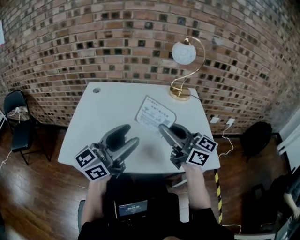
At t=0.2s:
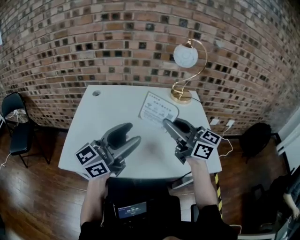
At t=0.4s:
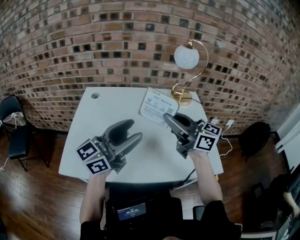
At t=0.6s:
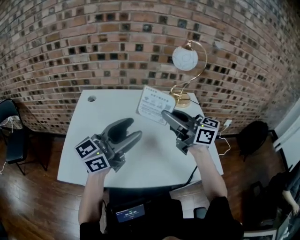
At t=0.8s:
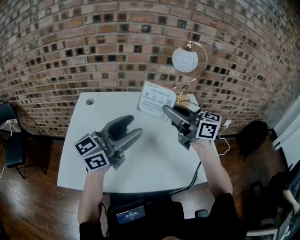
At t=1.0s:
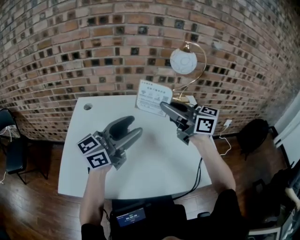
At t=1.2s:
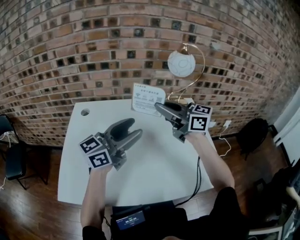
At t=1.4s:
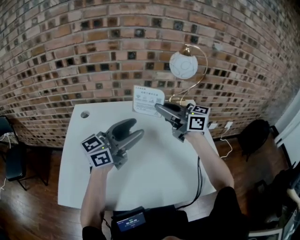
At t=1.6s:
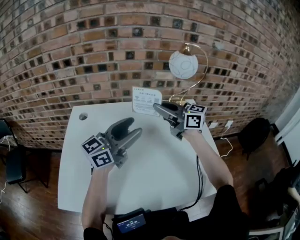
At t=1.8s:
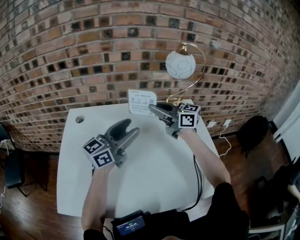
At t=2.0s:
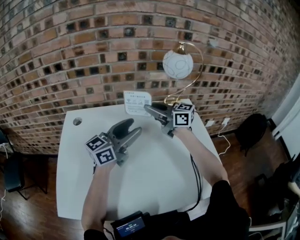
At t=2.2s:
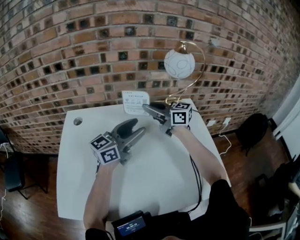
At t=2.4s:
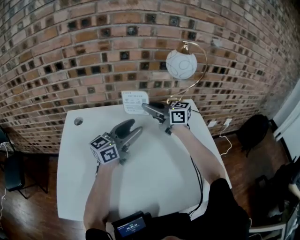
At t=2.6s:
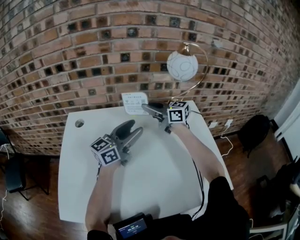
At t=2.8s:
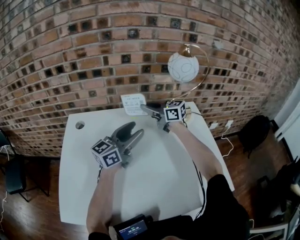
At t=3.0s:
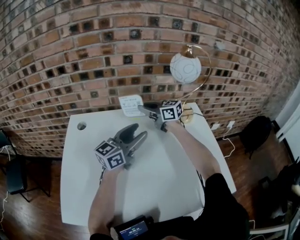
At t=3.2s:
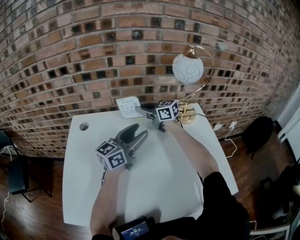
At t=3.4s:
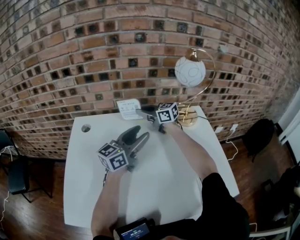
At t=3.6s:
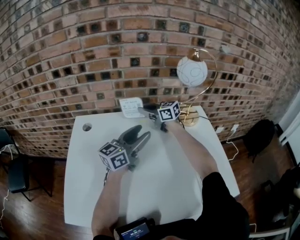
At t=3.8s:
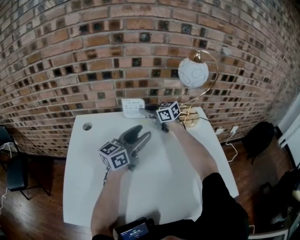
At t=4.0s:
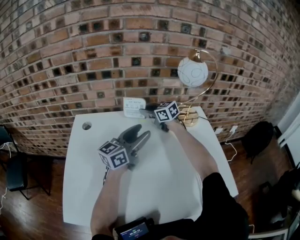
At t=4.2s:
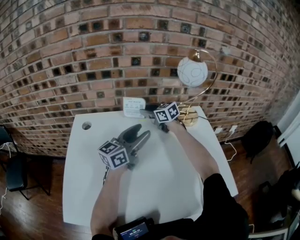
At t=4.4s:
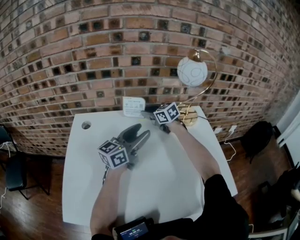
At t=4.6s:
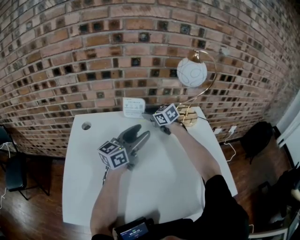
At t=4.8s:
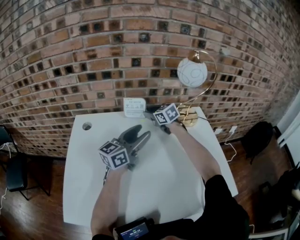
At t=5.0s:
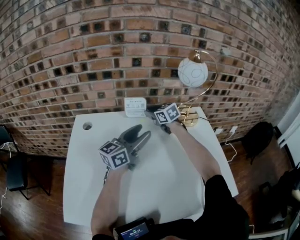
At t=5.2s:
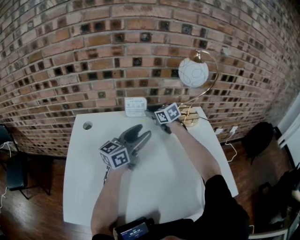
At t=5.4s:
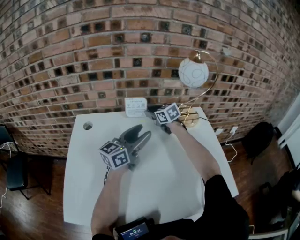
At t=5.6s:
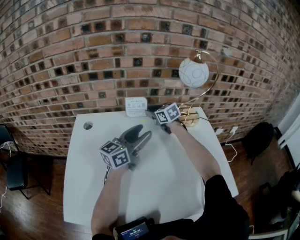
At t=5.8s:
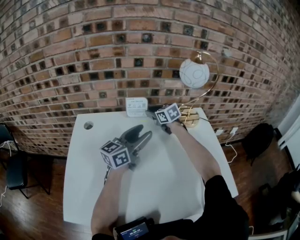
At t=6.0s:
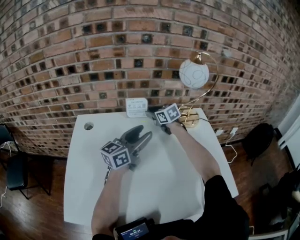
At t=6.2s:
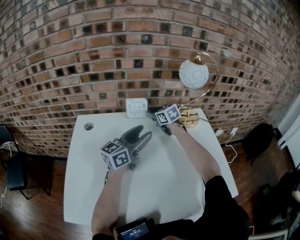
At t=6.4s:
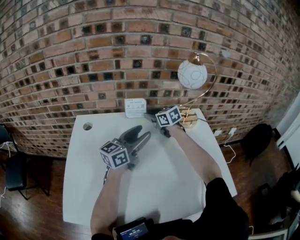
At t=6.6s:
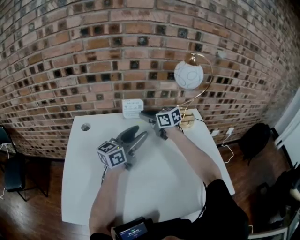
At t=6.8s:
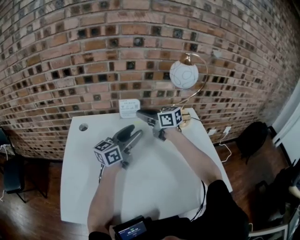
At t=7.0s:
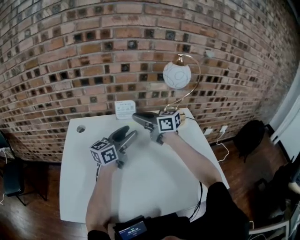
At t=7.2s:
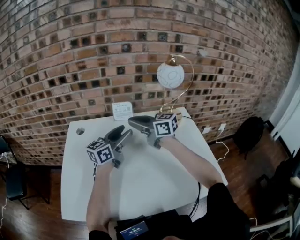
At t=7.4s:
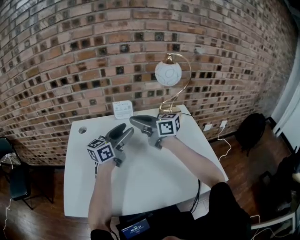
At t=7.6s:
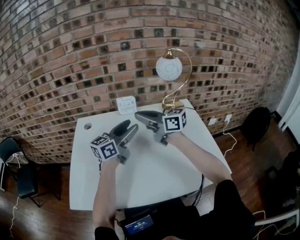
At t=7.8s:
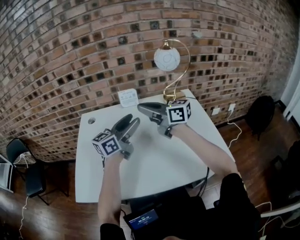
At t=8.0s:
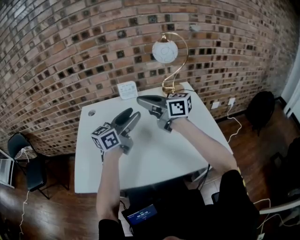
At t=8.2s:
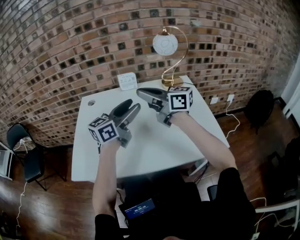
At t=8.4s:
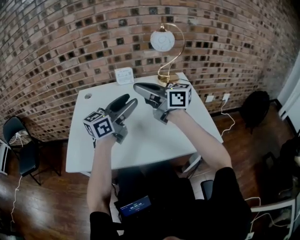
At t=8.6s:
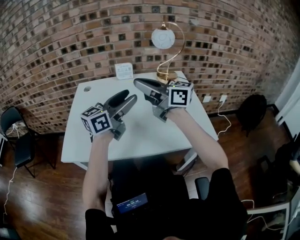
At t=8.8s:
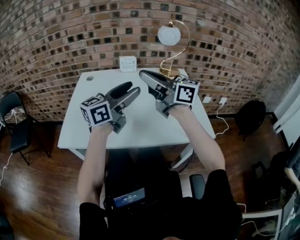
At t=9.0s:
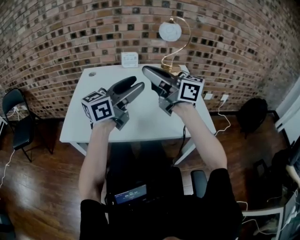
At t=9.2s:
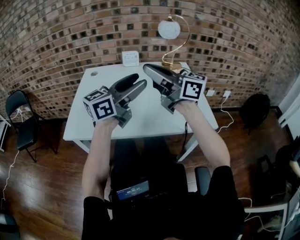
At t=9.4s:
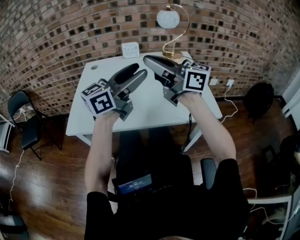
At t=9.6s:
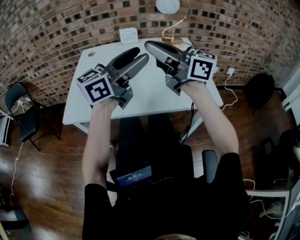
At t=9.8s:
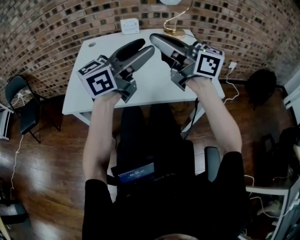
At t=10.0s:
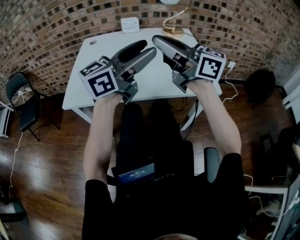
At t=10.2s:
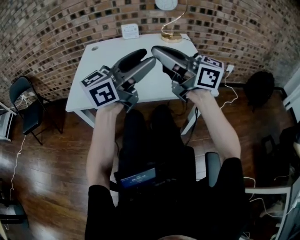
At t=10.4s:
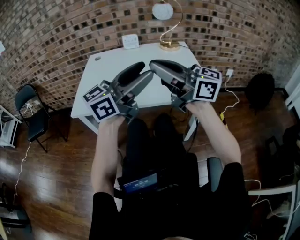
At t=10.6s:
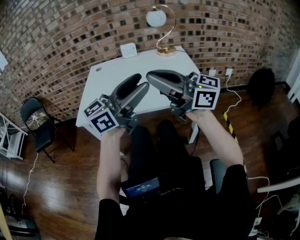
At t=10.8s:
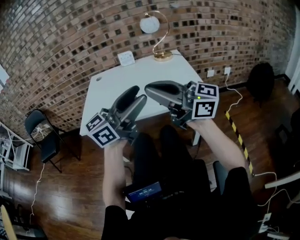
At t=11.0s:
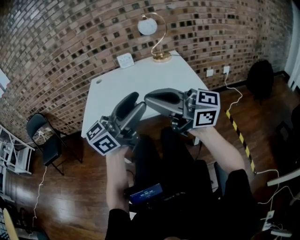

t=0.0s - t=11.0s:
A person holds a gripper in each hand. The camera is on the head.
t=0.0s - t=1.6s: The two grippers go some 25 cm forward.
t=1.6s - t=3.2s: The right gripper moves forward, downward and to the left, about 20 cm. Meanwhile the left gripper is displaced forward and downward by about 10 cm.
t=3.2s - t=4.8s: The right gripper changes place by roughly 5 cm, changes its angle by about 30 degrees, and opens.
t=4.8s - t=6.2s: The two grippers keep their place.
t=6.2s - t=7.8s: The right gripper goes about 30 cm backward and upward, tilts its fingers roughly 30 degrees upward, and closes its fingers, while the left gripper heads backward and upward, covering some 10 cm.
t=7.8s - t=9.4s: The grippers both shift backward and upward by approximately 25 cm.
t=9.4s - t=11.0s: The right gripper shifts by approximately 25 cm. The left gripper ends up approximately 20 cm from where it was.

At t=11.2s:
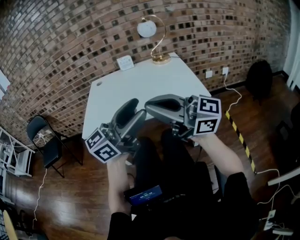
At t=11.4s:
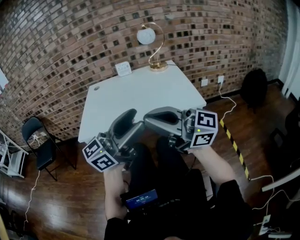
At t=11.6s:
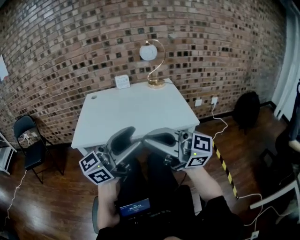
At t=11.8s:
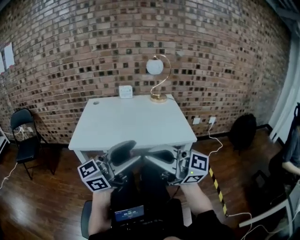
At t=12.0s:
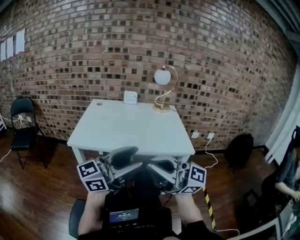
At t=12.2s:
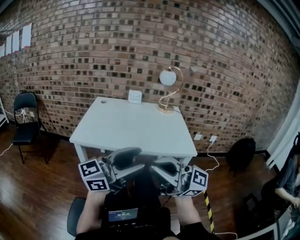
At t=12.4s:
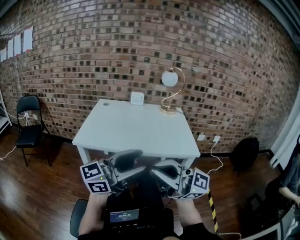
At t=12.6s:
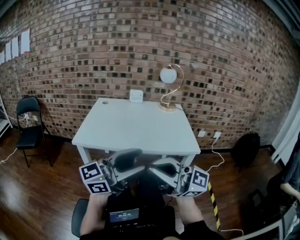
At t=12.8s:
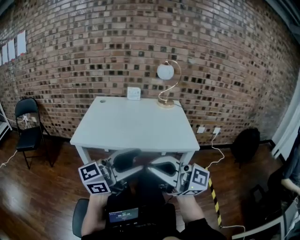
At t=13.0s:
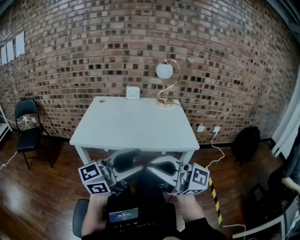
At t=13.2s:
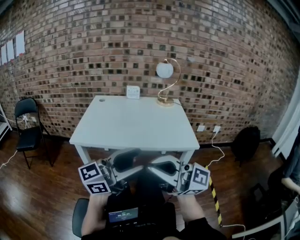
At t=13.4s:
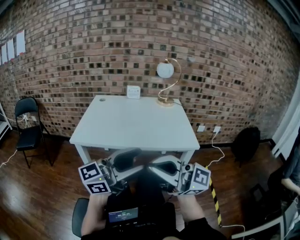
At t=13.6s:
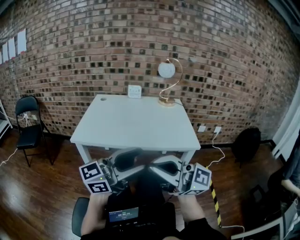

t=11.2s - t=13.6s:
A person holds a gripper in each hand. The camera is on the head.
t=11.2s - t=12.4s: The right gripper shifts by some 10 cm. Meanwhile the left gripper ends up some 10 cm from where it was.
t=12.4s - t=13.6s: The grippers stay close to where they were, moving slightly.

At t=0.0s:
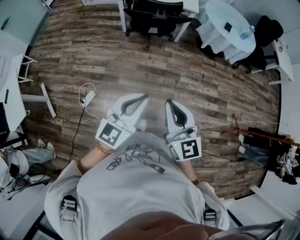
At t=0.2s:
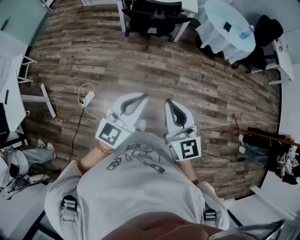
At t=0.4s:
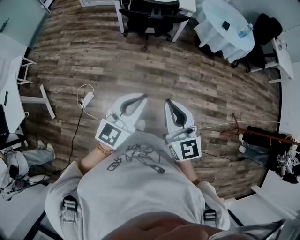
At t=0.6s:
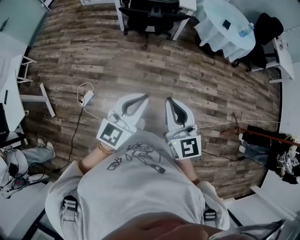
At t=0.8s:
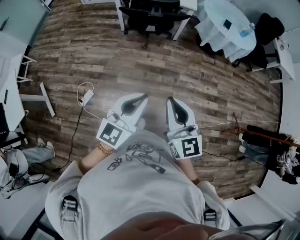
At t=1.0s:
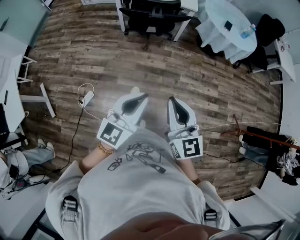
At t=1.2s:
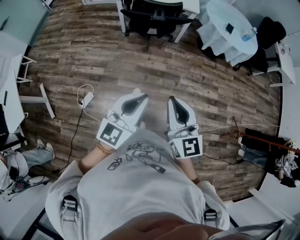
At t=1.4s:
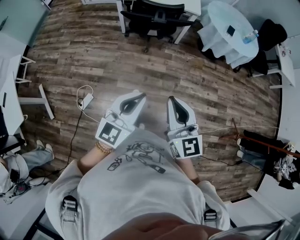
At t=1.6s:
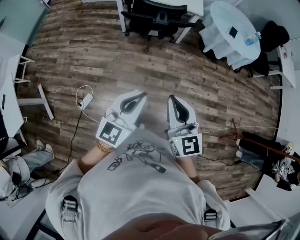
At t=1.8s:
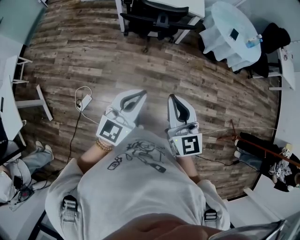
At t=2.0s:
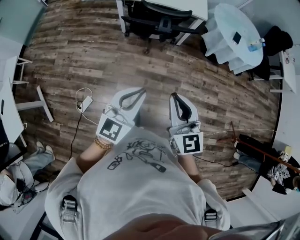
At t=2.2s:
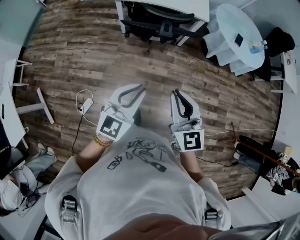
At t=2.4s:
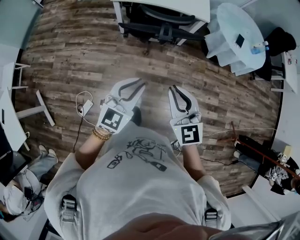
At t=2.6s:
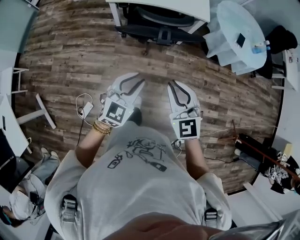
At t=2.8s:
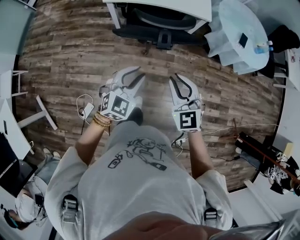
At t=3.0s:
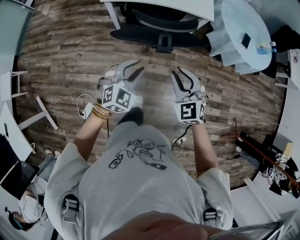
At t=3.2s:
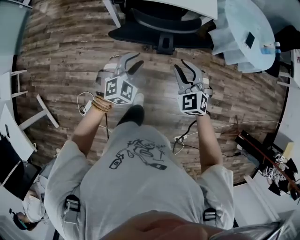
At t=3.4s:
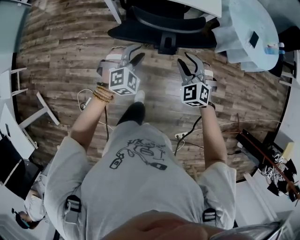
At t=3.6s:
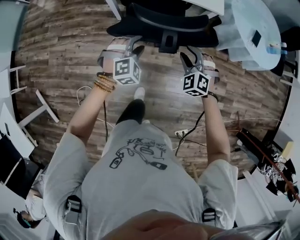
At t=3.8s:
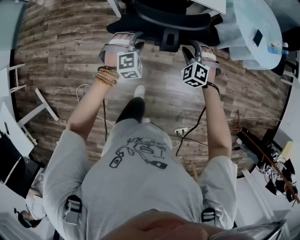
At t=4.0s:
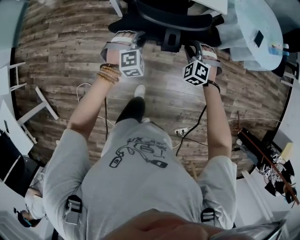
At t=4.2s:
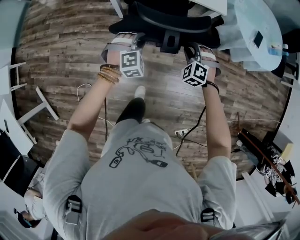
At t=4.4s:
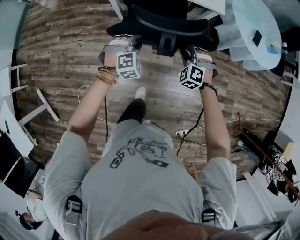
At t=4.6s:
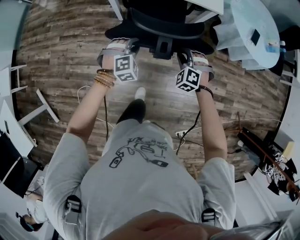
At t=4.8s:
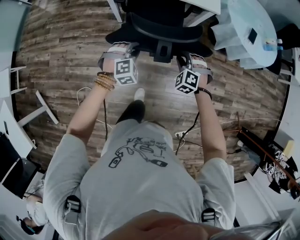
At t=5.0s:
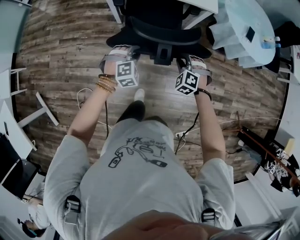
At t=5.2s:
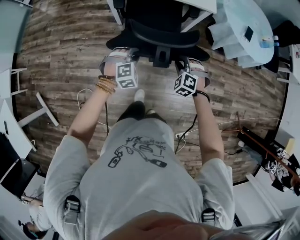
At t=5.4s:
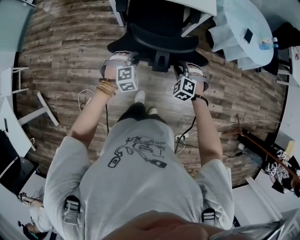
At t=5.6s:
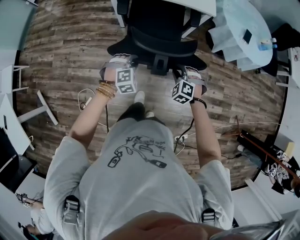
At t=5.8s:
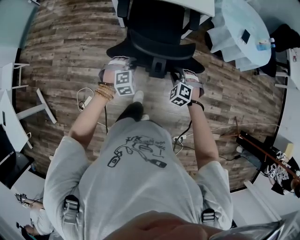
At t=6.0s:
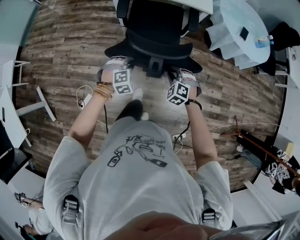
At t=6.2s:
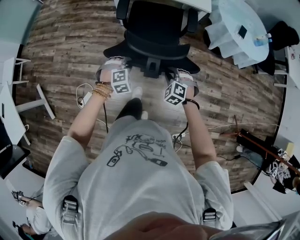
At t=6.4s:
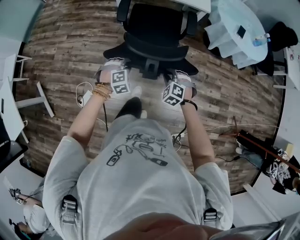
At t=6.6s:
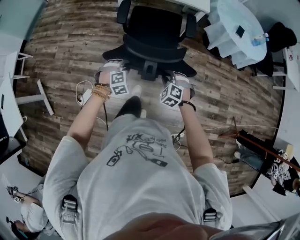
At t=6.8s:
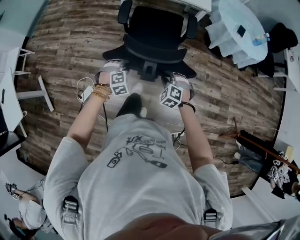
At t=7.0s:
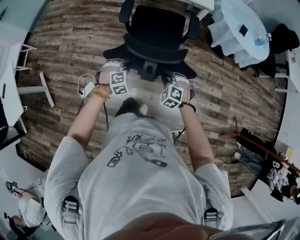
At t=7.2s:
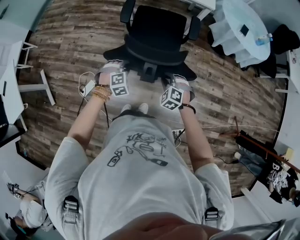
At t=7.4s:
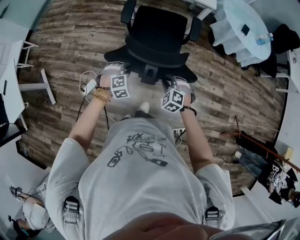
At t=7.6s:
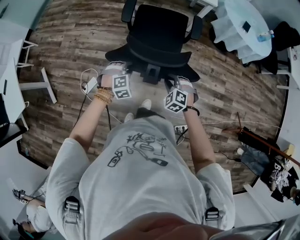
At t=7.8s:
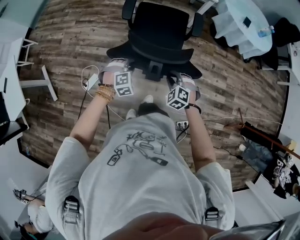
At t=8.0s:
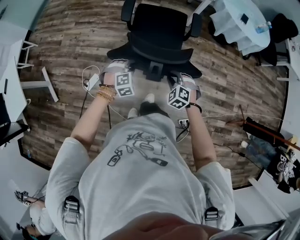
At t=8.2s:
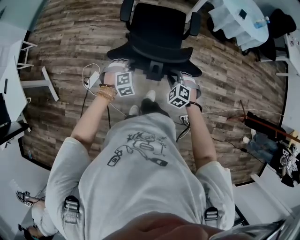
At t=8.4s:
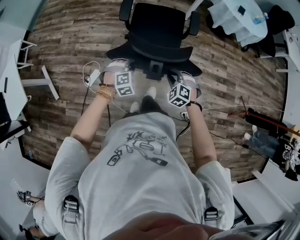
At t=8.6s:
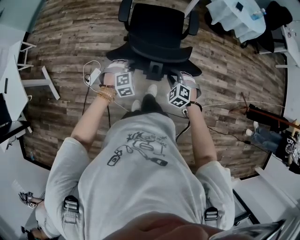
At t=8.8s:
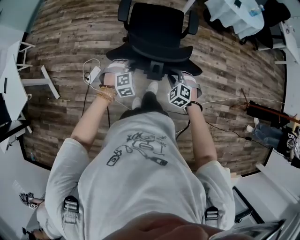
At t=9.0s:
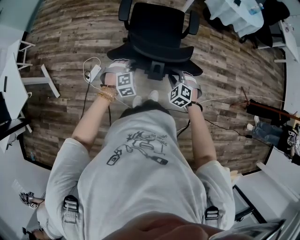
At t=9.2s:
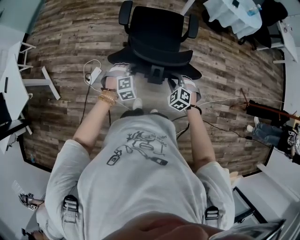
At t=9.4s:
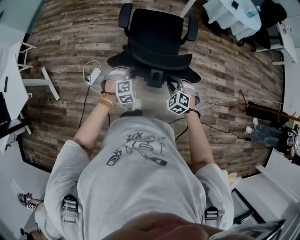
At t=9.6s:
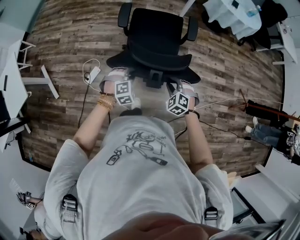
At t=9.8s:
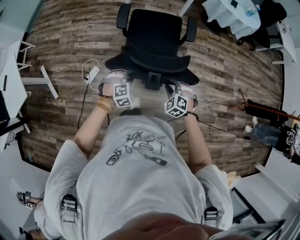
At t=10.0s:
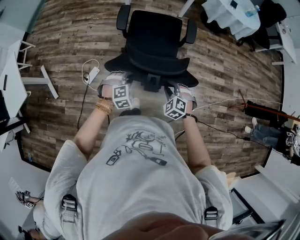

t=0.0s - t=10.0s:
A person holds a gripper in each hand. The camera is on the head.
t=0.0s - t=1.4s: The two grippers go some 10 cm forward.
t=1.4s - t=2.8s: The pair of grippers is taken forward, approximately 40 cm. The right gripper swivels approximately 30 degrees. Meanwhile the left gripper changes its angle by some 30 degrees, and opens its fingers.
t=2.8s - t=4.2s: Both grippers travel together forward and downward, about 30 cm. The right gripper swivels approximately 50 degrees. Meanwhile the left gripper swivels some 40 degrees.
t=4.2s - t=5.8s: Both grippers move backward, about 25 cm.
t=5.8s - t=7.2s: Both grippers travel together backward, approximately 25 cm.
t=7.2s - t=8.6s: Both grippers travel together backward, roughly 20 cm.
t=8.6s - t=10.0s: The grippers both shift backward by approximately 10 cm.
